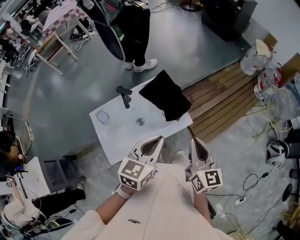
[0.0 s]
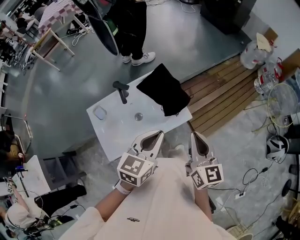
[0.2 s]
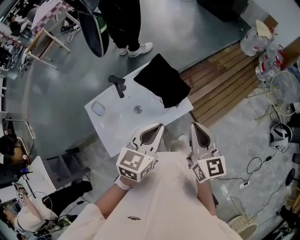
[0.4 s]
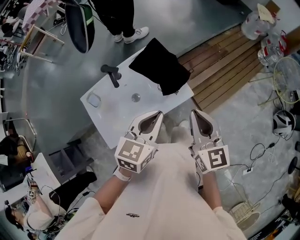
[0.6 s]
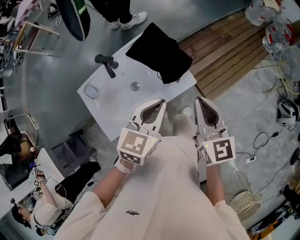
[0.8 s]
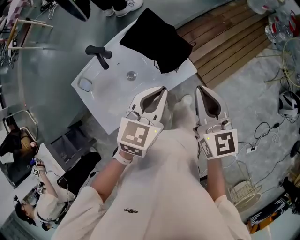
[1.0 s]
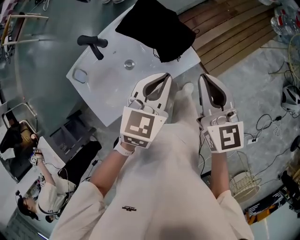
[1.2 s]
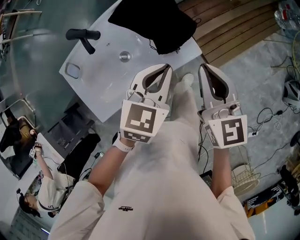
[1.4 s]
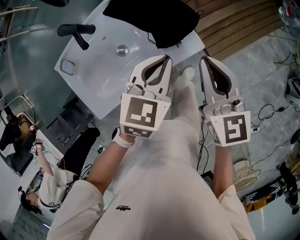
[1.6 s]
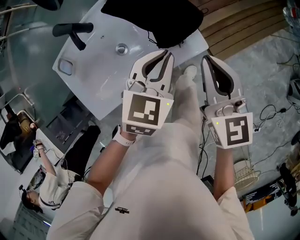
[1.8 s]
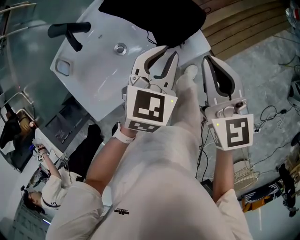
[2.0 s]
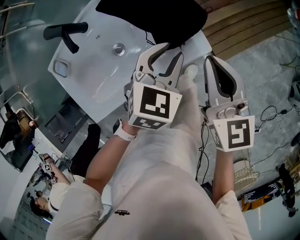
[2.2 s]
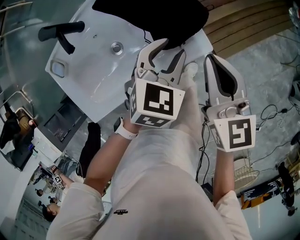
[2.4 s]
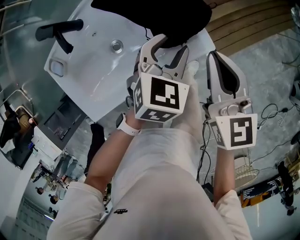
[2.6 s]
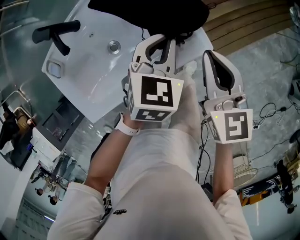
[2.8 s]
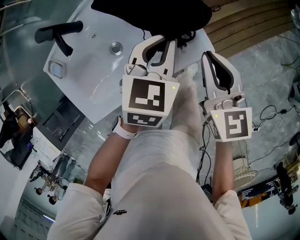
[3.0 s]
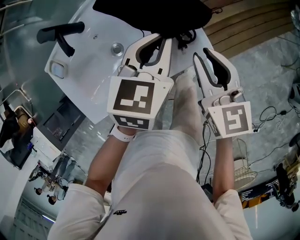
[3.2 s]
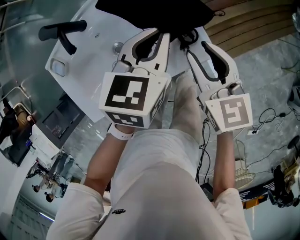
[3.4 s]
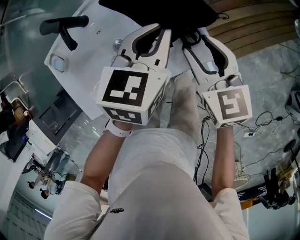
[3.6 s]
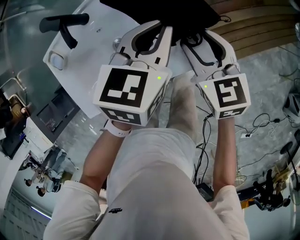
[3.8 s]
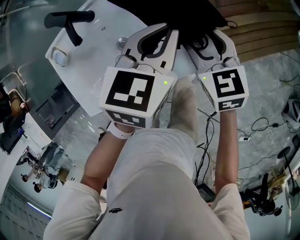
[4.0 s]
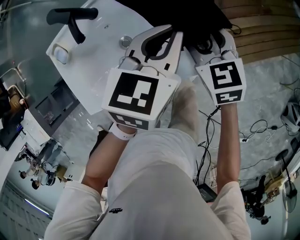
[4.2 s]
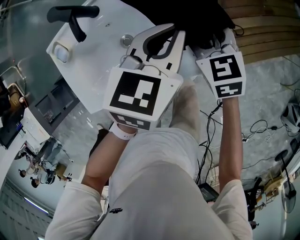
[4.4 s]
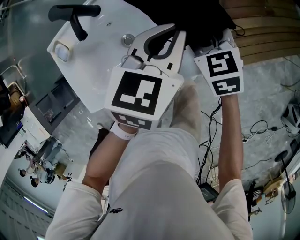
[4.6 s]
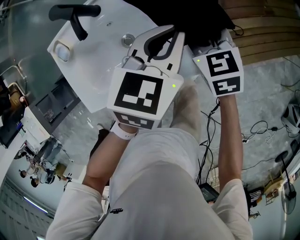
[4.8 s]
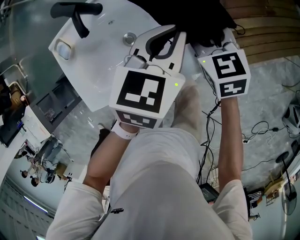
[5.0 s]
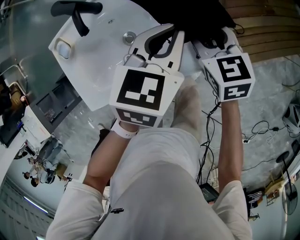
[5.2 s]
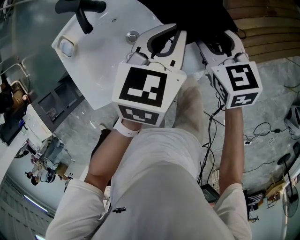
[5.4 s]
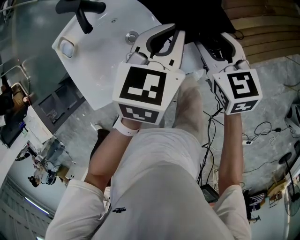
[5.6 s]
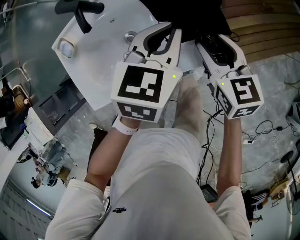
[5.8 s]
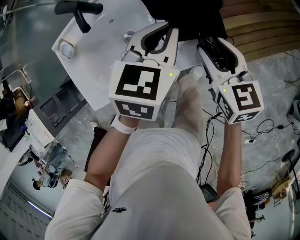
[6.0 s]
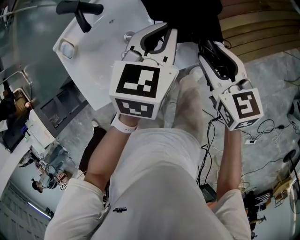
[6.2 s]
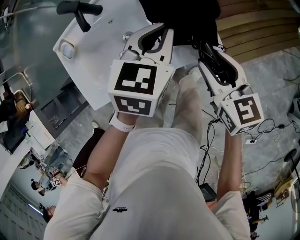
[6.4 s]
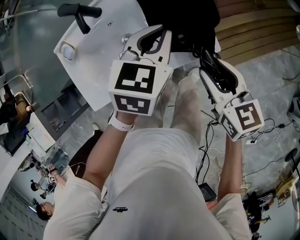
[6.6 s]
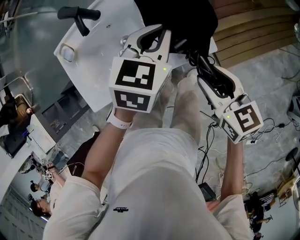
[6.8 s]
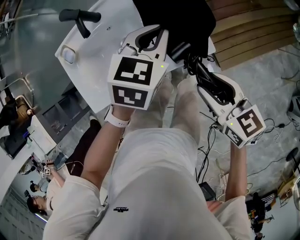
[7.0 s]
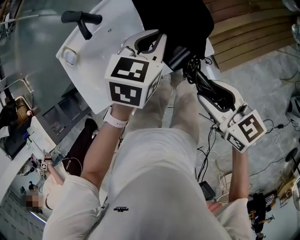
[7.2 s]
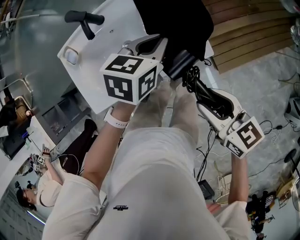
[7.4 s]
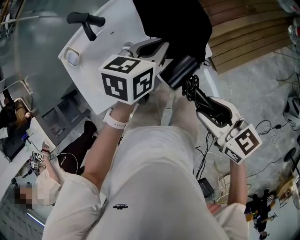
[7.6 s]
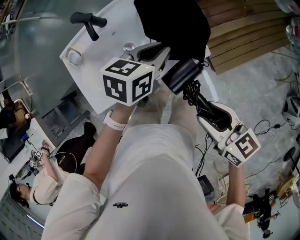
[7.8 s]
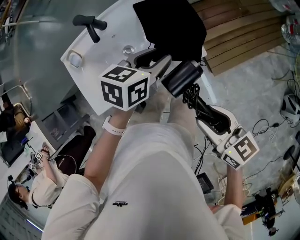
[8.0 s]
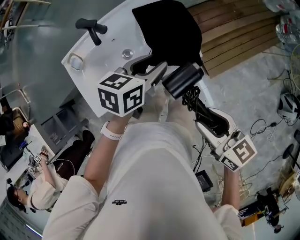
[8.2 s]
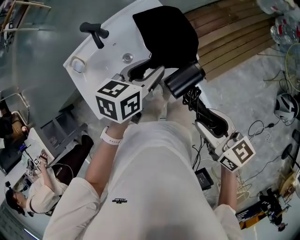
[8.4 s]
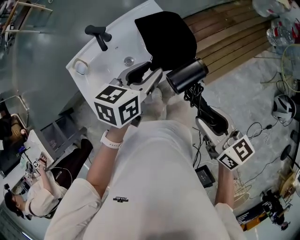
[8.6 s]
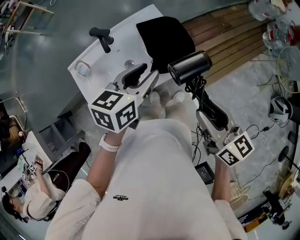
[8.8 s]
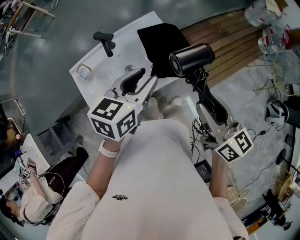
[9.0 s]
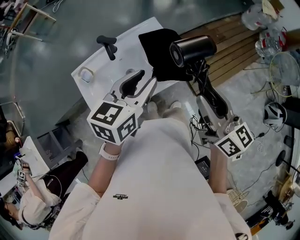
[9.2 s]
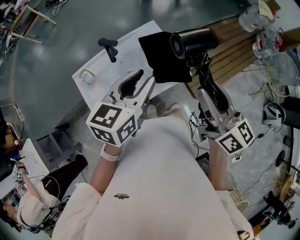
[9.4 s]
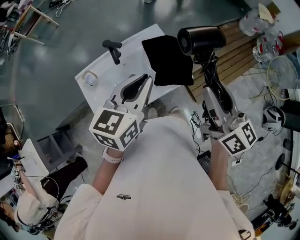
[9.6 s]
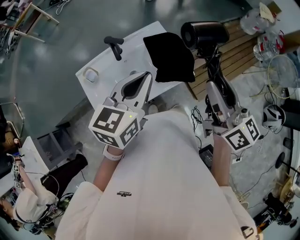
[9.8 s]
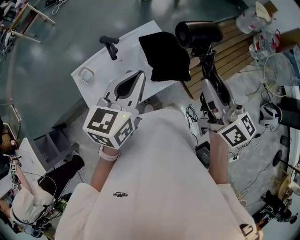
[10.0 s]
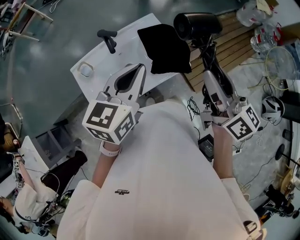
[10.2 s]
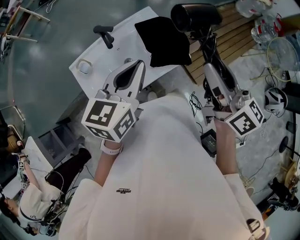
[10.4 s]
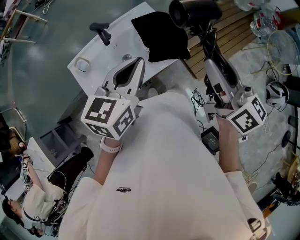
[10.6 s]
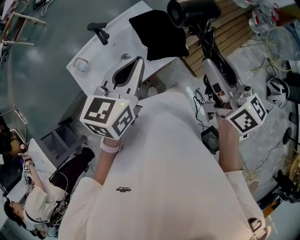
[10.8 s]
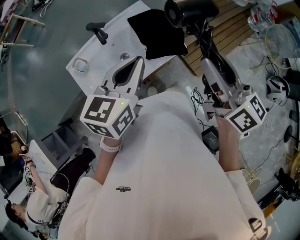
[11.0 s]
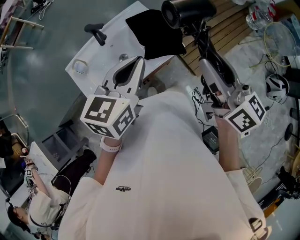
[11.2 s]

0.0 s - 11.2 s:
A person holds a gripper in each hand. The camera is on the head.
0.0 s - 1.6 s: The grippers both shift downward and forward by about 20 cm.
1.6 s - 3.2 s: The right gripper heads downward, covering some 10 cm. Meanwhile the left gripper heads forward and downward, covering some 10 cm, and opens, then closes once more.
3.2 s - 4.8 s: The right gripper travels forward, to the left and downward by approximately 15 cm, swivels roughly 30 degrees, and opens its fingers.
4.8 s - 6.4 s: The right gripper travels backward, upward and to the right by approximately 15 cm.
6.4 s - 8.0 s: The left gripper is displaced backward by approximately 5 cm, swivels roughly 20 degrees, and opens up; the right gripper travels backward and upward by roughly 20 cm.
8.0 s - 9.6 s: The left gripper heads upward, covering approximately 20 cm, changes its angle by some 30 degrees, and closes up; the right gripper is displaced upward and forward by some 25 cm, and rotates some 40 degrees.
9.6 s - 11.2 s: The left gripper ends up approximately 5 cm from where it was.

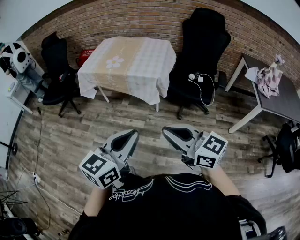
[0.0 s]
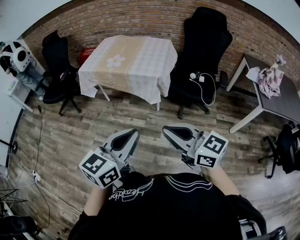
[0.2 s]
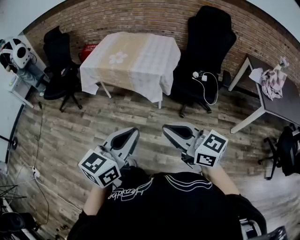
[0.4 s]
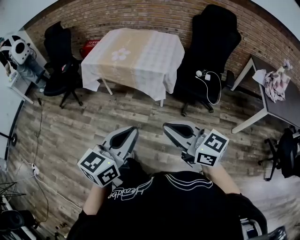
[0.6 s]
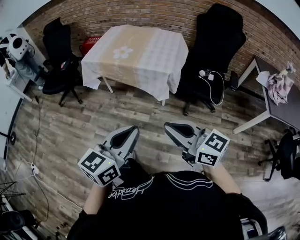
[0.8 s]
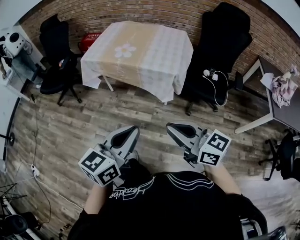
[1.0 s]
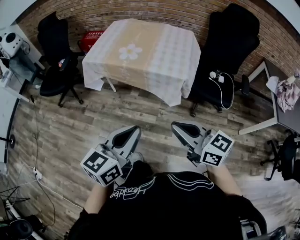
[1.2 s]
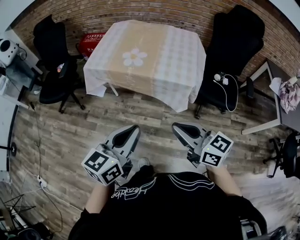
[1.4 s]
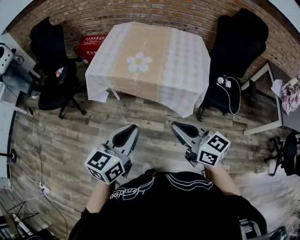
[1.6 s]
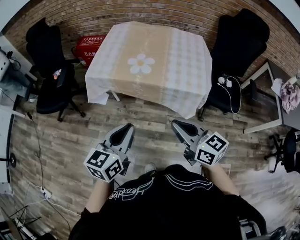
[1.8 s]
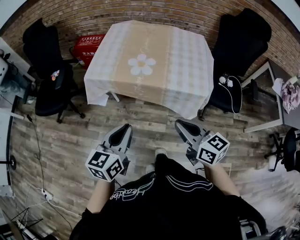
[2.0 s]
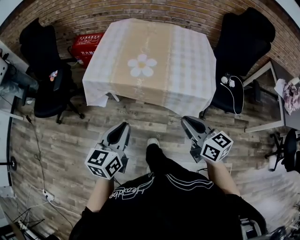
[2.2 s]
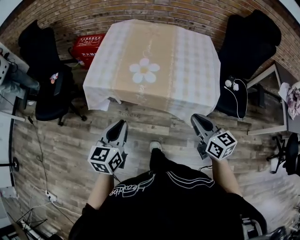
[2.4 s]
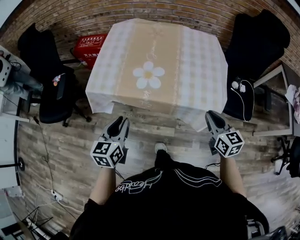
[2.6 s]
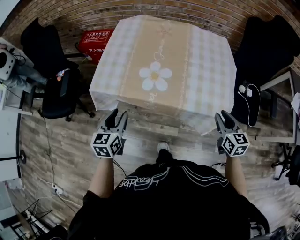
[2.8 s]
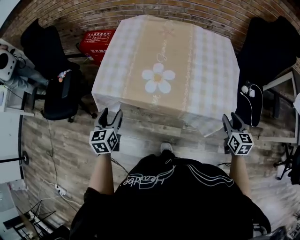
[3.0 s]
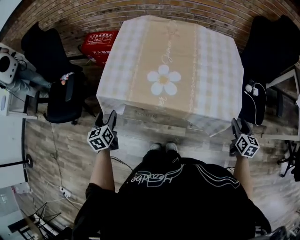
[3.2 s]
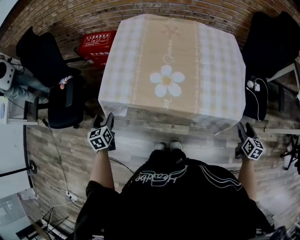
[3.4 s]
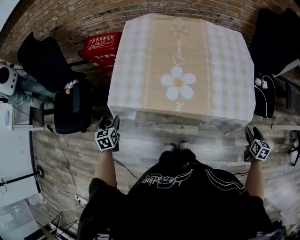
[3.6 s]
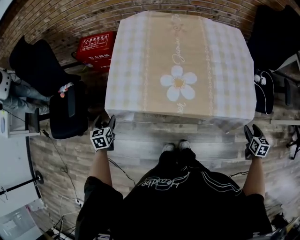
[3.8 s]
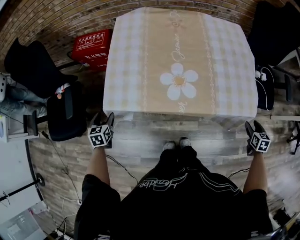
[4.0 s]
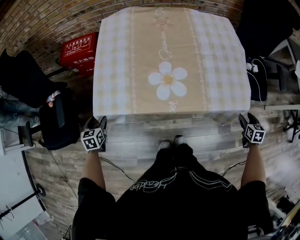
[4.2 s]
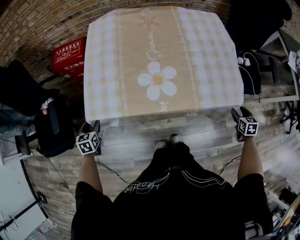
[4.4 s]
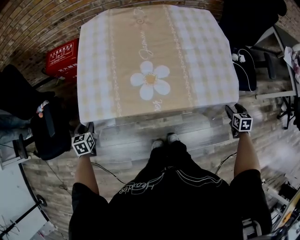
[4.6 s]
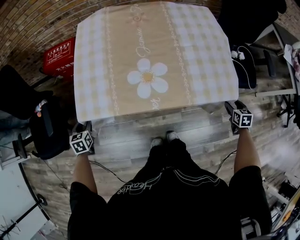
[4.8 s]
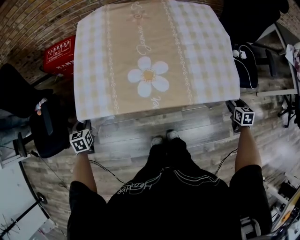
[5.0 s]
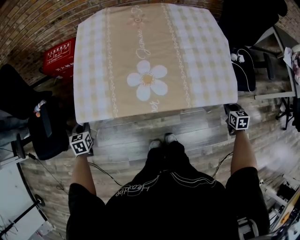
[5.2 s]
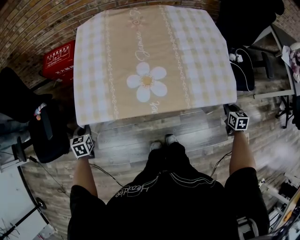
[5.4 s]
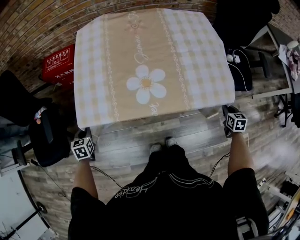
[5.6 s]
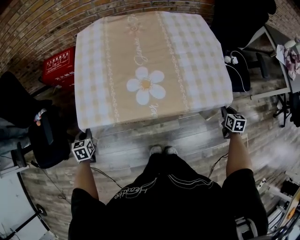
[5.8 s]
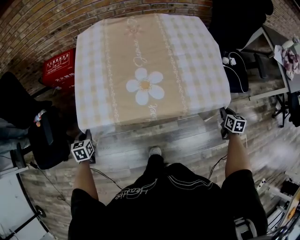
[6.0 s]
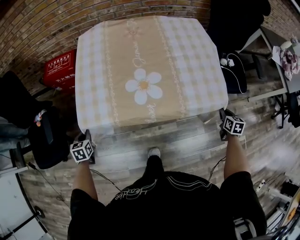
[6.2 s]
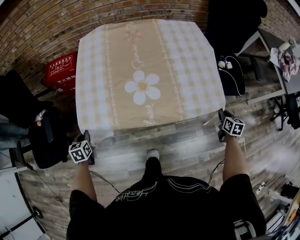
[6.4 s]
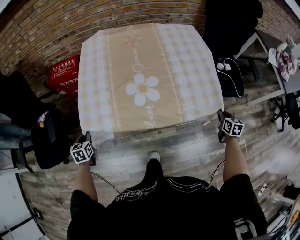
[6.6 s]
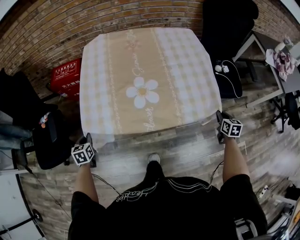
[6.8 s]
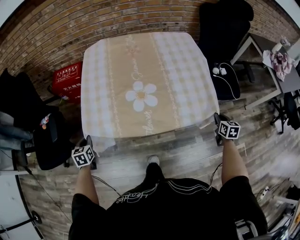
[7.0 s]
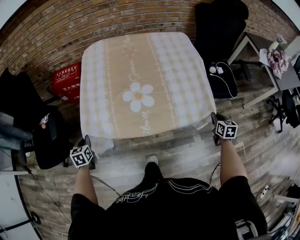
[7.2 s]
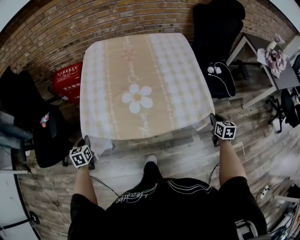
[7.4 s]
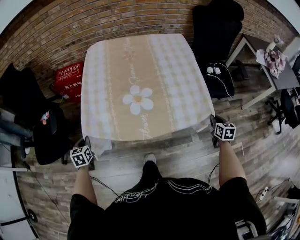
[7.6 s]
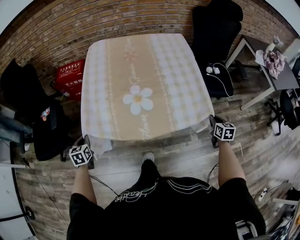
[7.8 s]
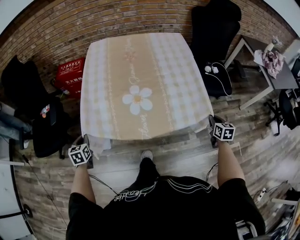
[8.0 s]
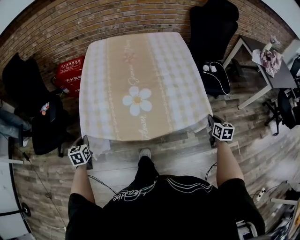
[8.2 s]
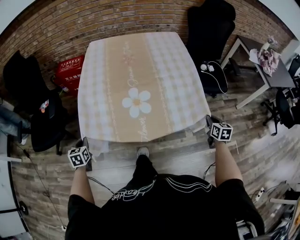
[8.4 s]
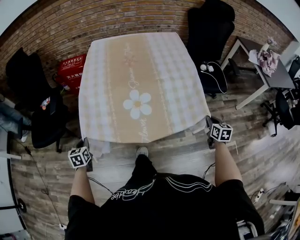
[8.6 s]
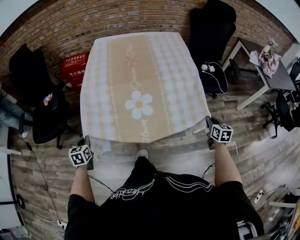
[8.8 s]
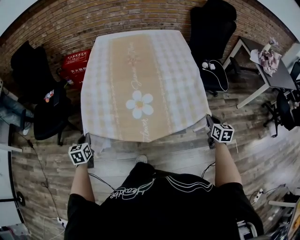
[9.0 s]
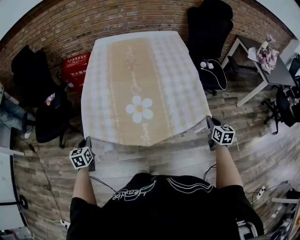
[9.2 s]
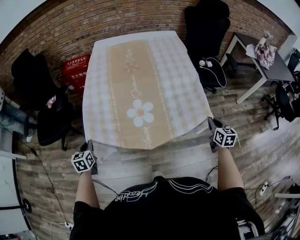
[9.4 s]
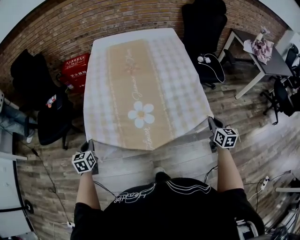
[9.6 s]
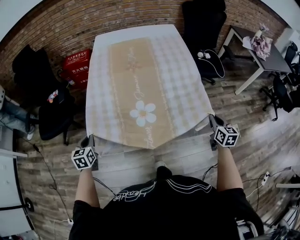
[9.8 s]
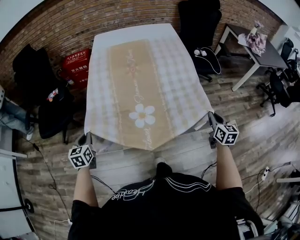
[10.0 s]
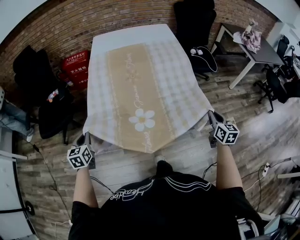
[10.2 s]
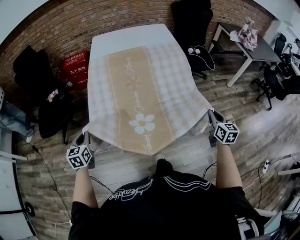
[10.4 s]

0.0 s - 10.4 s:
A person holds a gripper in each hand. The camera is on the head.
0.0 s - 1.4 s: The grippers both shift forward and to the left by roughly 35 cm.
1.4 s - 3.0 s: The right gripper heads forward, downward and to the right, covering roughly 40 cm, swivels roughly 50 degrees, and opens its fingers; the left gripper heads forward, to the left and downward, covering about 50 cm, swivels some 30 degrees, and opens its fingers.
3.0 s - 4.4 s: The right gripper moves downward, some 15 cm, and turns by about 30 degrees. Meanwhile the left gripper goes some 30 cm to the left, downward and forward, and changes its angle by some 20 degrees.
4.4 s - 6.0 s: The right gripper closes its fingers; the left gripper closes its fingers.
6.0 s - 7.4 s: Both grippers travel together backward and upward, about 15 cm.
7.4 s - 9.0 s: Both grippers move backward, some 20 cm.
9.0 s - 10.4 s: The two grippers go approximately 25 cm backward and upward.

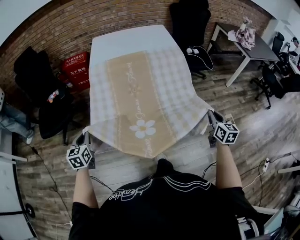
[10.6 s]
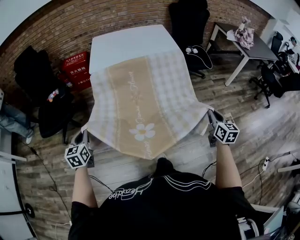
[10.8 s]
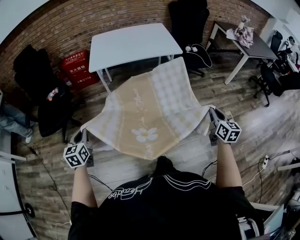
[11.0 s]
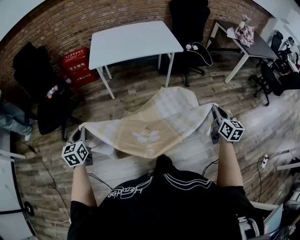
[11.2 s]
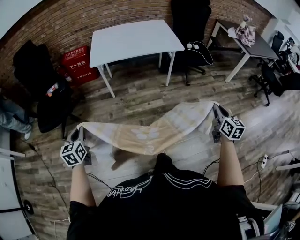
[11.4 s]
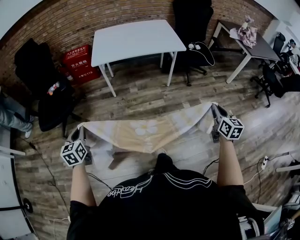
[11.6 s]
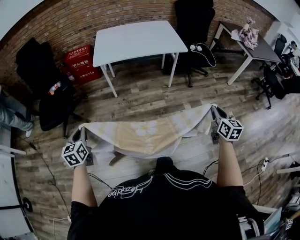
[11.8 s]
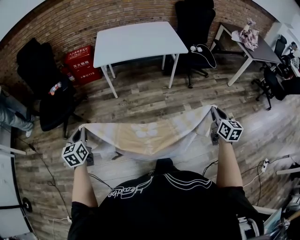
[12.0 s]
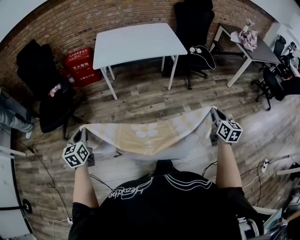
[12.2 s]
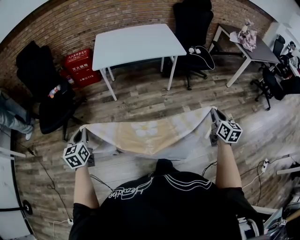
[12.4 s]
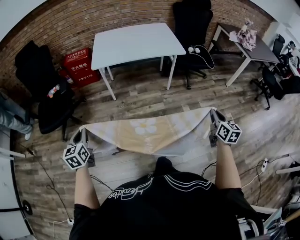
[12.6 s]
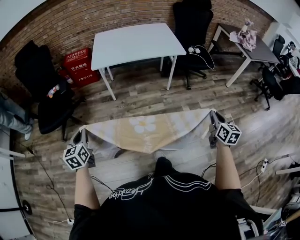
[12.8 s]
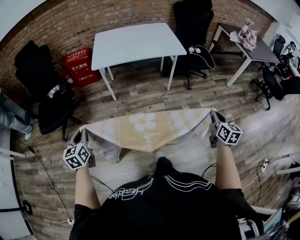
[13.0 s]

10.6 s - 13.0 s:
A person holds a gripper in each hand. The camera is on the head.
10.6 s - 13.0 s: The grippers move only a little.
